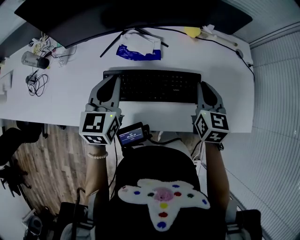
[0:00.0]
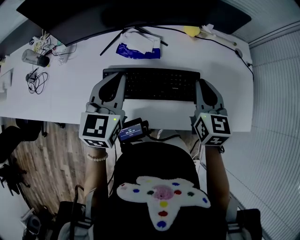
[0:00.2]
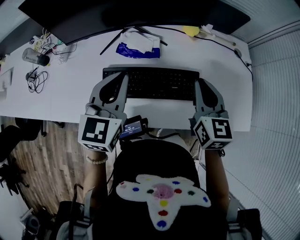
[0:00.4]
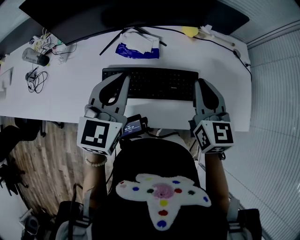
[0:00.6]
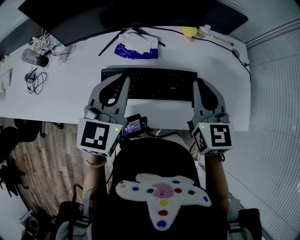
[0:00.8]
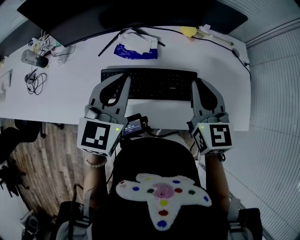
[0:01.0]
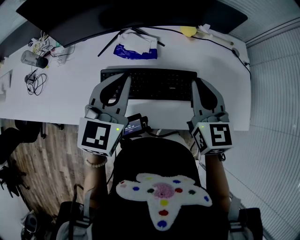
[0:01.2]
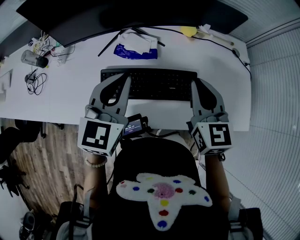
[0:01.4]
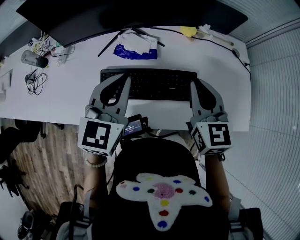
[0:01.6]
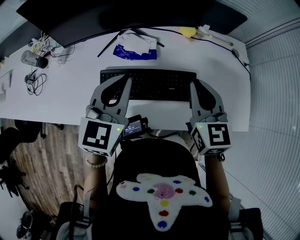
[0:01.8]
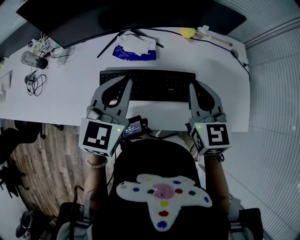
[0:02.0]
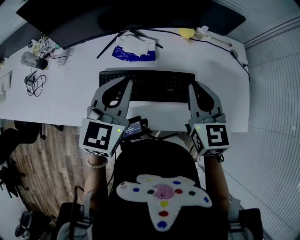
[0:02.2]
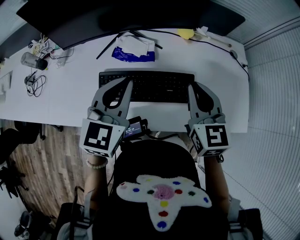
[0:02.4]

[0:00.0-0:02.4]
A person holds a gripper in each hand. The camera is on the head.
0:00.0 to 0:01.2: The right gripper heads upward, covering some 10 cm, while the left gripper is displaced upward and to the right by some 10 cm.
0:01.2 to 0:02.4: Both grippers stay about where they are.

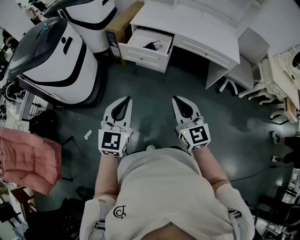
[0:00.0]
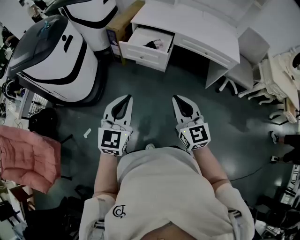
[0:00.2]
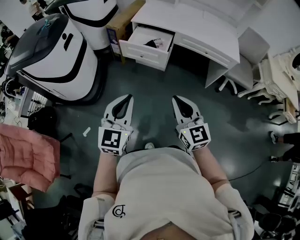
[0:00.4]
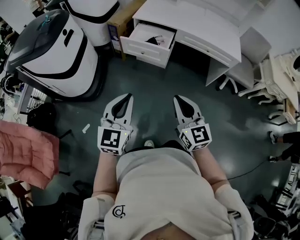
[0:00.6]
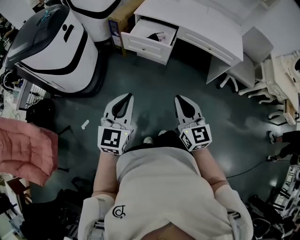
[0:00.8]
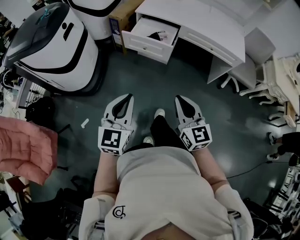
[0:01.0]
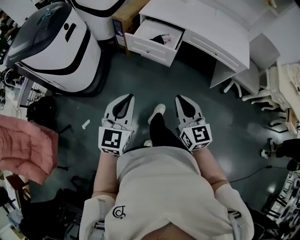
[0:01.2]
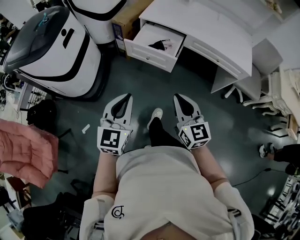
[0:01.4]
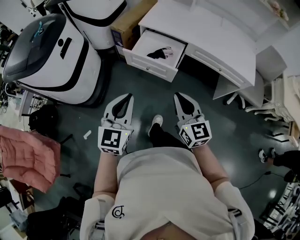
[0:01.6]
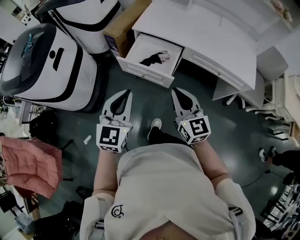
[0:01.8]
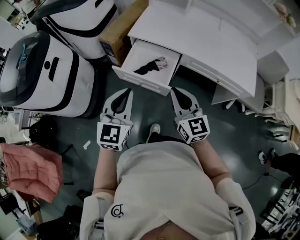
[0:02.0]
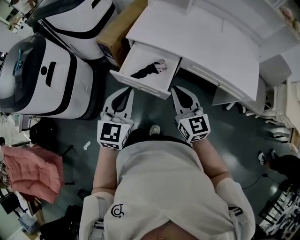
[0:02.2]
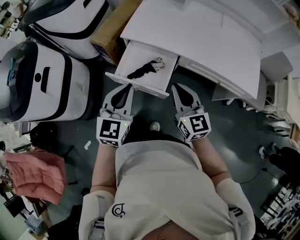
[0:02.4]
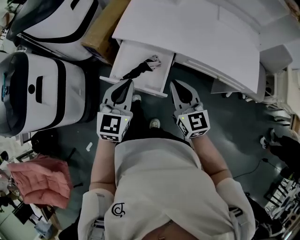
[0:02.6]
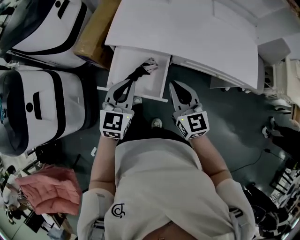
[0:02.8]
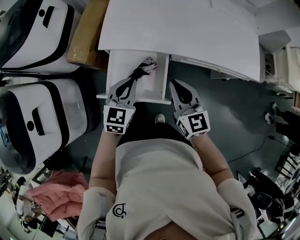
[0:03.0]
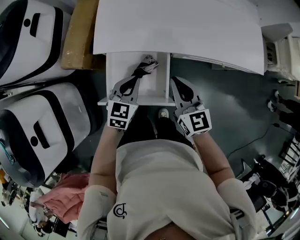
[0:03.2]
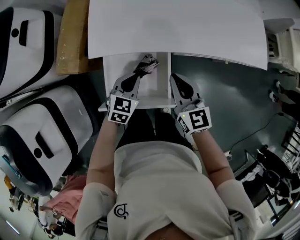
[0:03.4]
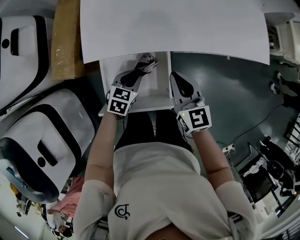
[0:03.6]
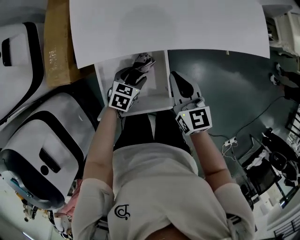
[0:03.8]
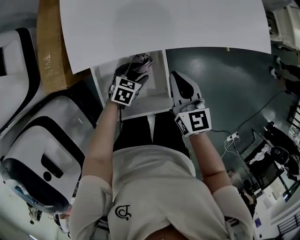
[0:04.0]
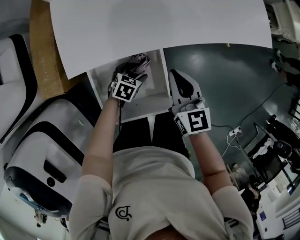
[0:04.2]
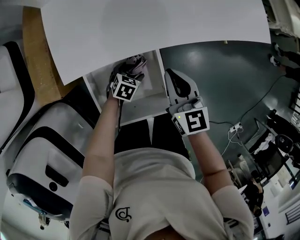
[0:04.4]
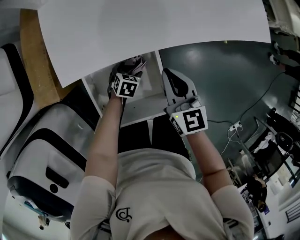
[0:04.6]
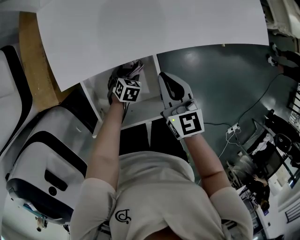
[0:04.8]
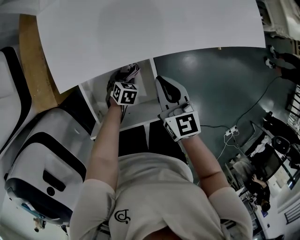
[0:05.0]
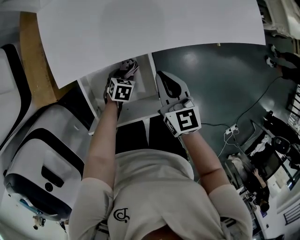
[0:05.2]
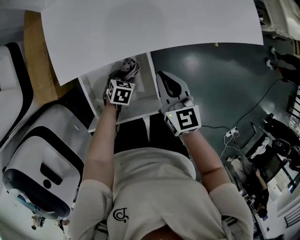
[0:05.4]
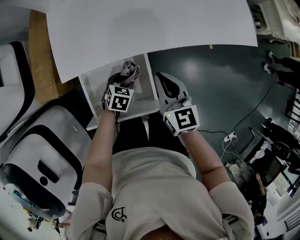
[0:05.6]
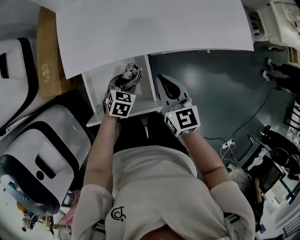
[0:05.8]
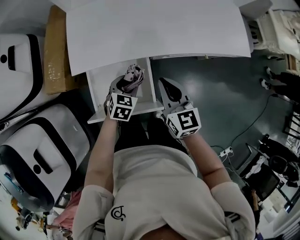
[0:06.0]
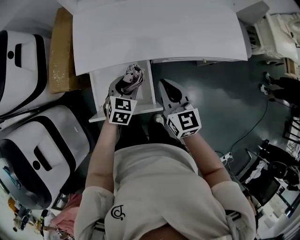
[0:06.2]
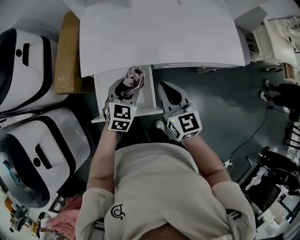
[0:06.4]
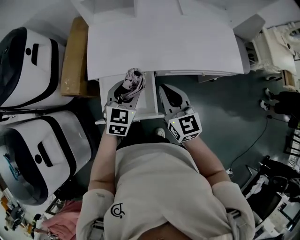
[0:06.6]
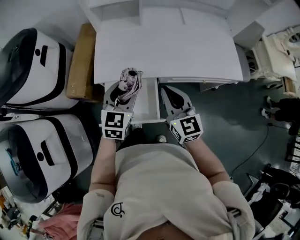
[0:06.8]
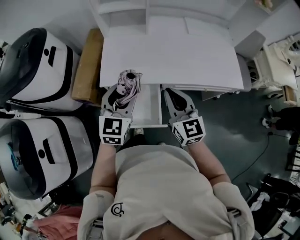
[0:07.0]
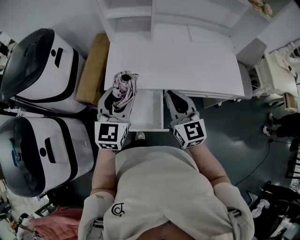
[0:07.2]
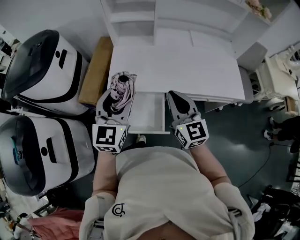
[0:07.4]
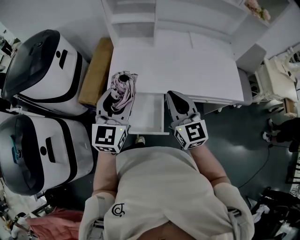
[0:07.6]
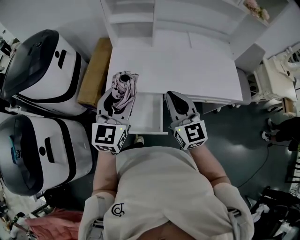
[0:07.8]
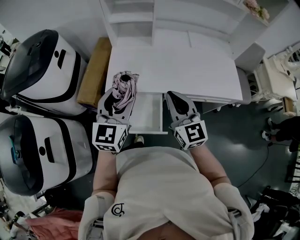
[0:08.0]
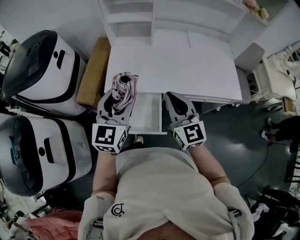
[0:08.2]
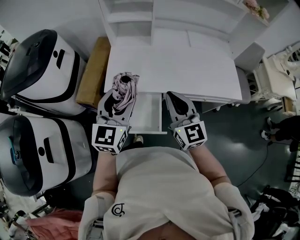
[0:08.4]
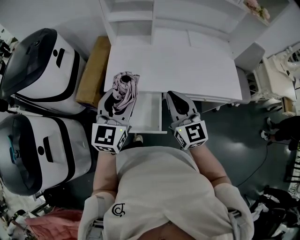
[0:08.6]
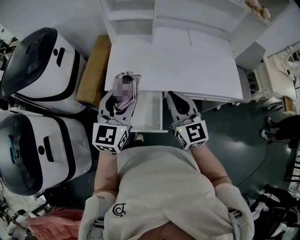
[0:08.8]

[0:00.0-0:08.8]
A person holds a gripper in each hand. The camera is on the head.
0:00.0 to 0:01.4: The two grippers go roughly 10 cm forward.
0:01.4 to 0:03.0: The pair of grippers is taken forward, some 50 cm. The left gripper swivels some 30 degrees.
0:03.0 to 0:04.4: The right gripper moves downward, approximately 10 cm, and changes its angle by some 30 degrees, while the left gripper shifts approximately 30 cm downward, angles its fingers downward, by approximately 30 degrees, and opens up.
0:04.4 to 0:05.8: The left gripper travels upward by roughly 10 cm, and closes up; the right gripper moves some 5 cm.
0:05.8 to 0:07.4: The left gripper heads upward, covering some 40 cm, and points its fingers some 50 degrees further upward, while the right gripper travels upward by some 20 cm, and changes its angle by roughly 20 degrees.
0:07.4 to 0:08.8: There are only small adjustments of the grippers.

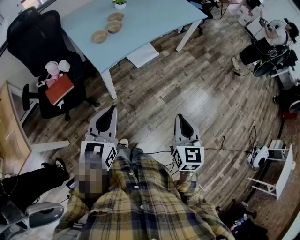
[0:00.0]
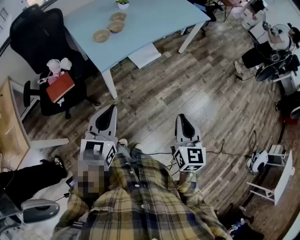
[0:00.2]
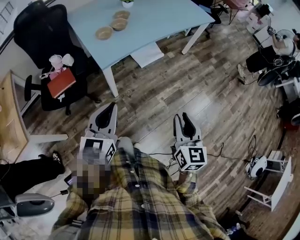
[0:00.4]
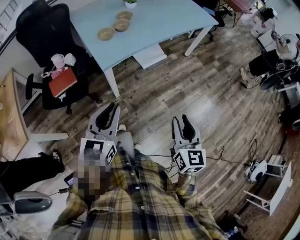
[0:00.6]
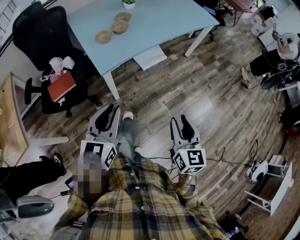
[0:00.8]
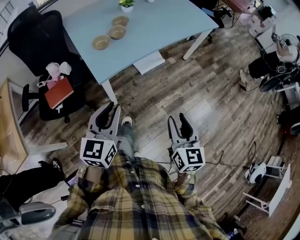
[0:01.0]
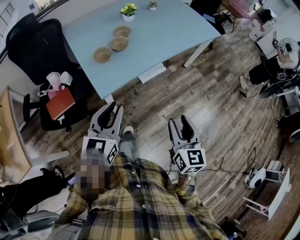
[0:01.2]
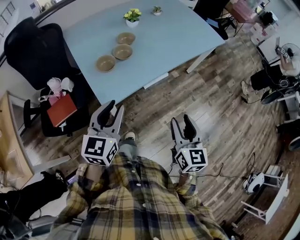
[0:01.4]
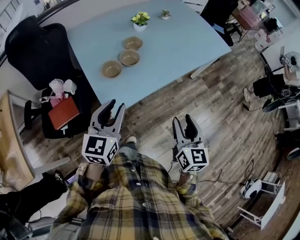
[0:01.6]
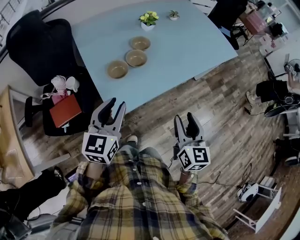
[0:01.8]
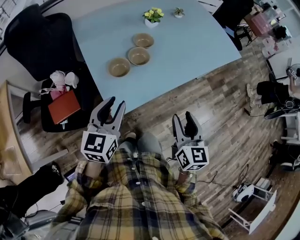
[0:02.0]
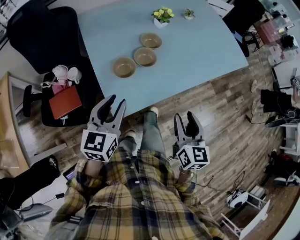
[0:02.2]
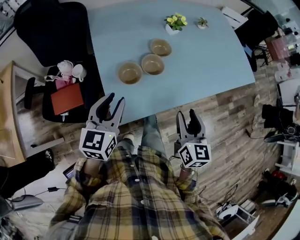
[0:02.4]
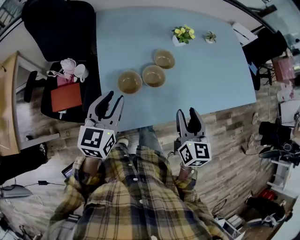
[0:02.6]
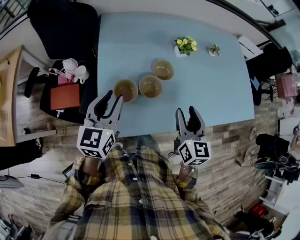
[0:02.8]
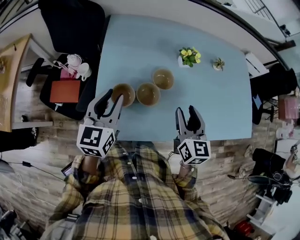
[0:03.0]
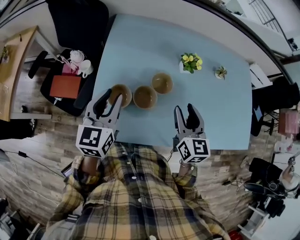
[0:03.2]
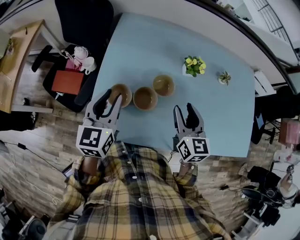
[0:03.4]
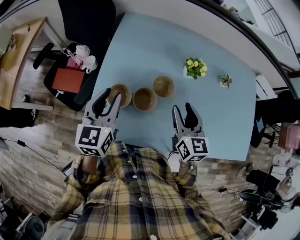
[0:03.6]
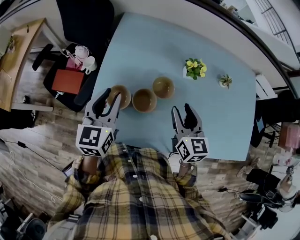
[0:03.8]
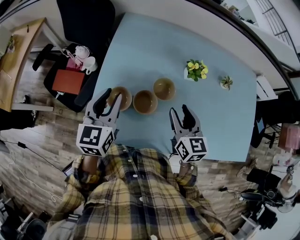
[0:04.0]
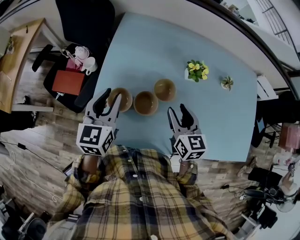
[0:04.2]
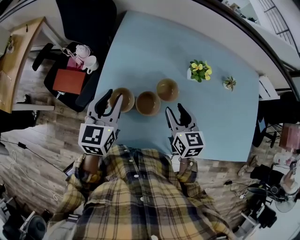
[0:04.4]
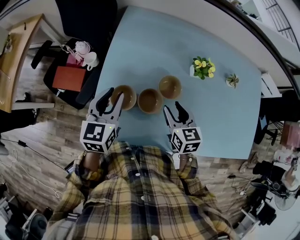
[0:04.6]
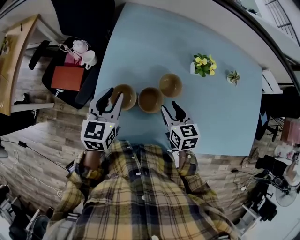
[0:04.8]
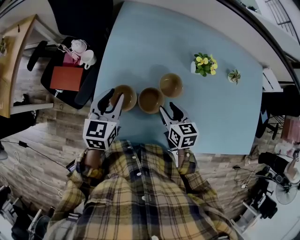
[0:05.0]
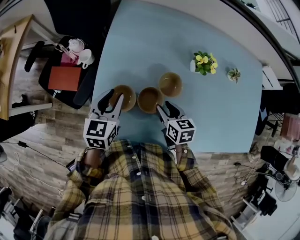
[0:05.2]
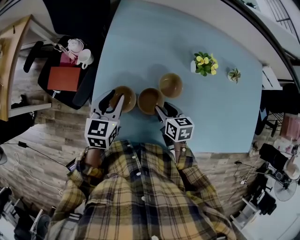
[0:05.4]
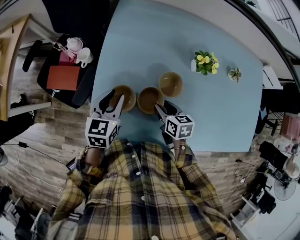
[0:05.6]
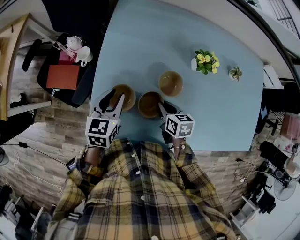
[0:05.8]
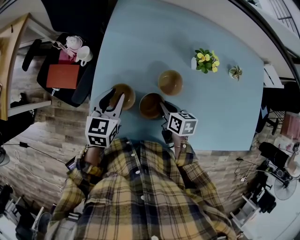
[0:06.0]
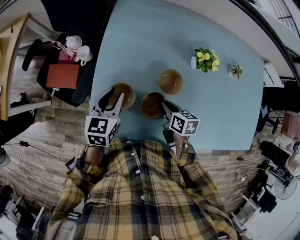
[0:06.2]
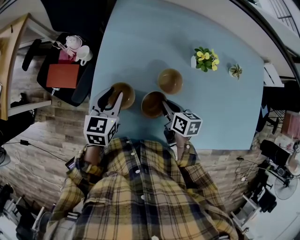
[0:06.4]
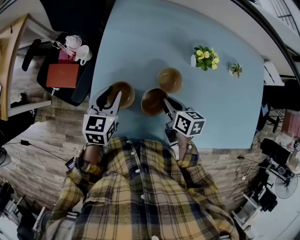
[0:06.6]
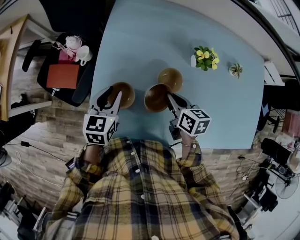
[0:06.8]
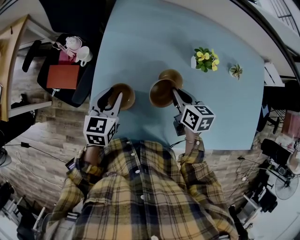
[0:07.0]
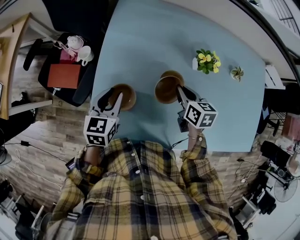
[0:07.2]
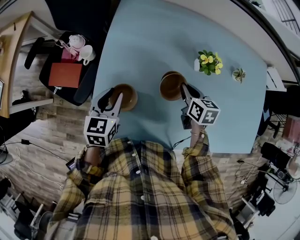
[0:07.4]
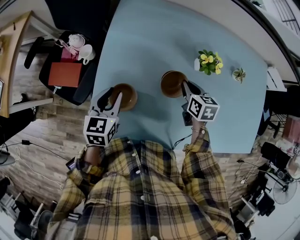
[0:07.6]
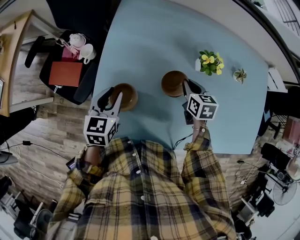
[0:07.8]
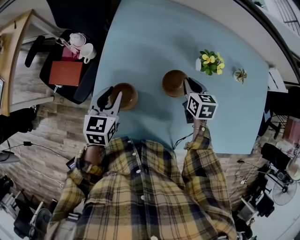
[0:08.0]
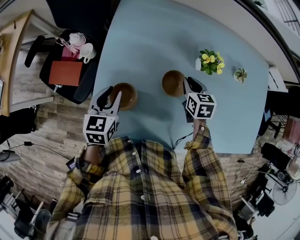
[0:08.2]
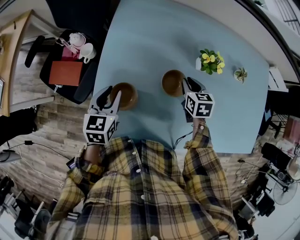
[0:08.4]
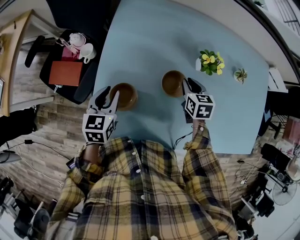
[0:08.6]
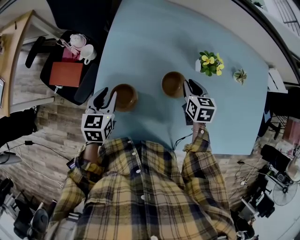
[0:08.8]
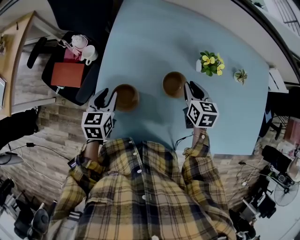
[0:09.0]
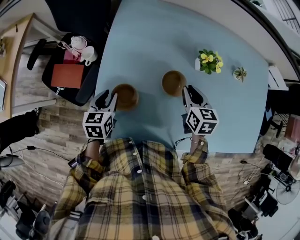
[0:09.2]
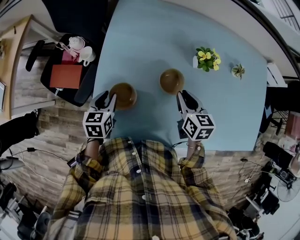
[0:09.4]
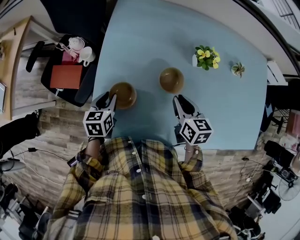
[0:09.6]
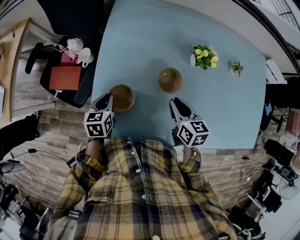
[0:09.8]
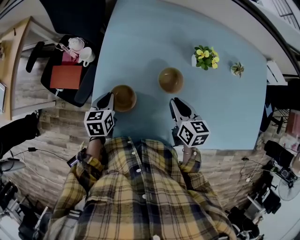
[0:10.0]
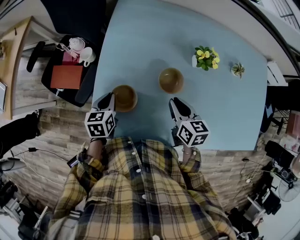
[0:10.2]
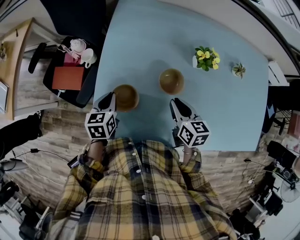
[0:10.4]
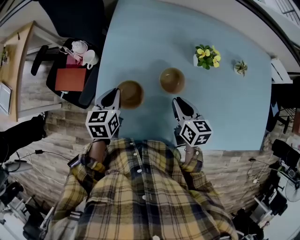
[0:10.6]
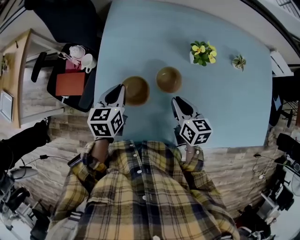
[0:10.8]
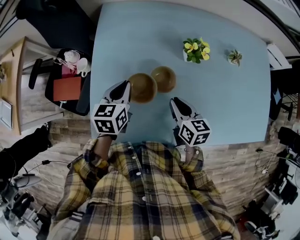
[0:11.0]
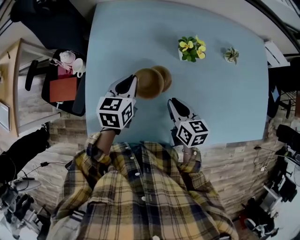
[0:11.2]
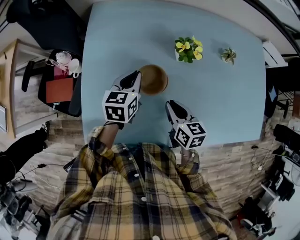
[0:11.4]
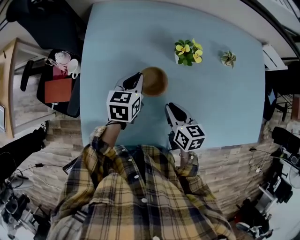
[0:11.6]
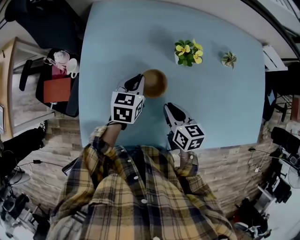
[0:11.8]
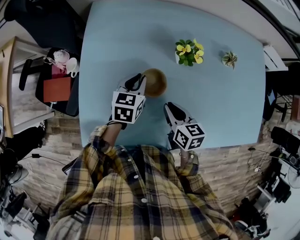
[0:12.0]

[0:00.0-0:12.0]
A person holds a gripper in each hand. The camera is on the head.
0:00.0 to 0:01.6: Both grippers move forward, approximately 30 cm. The right gripper opens up. The left gripper opens.
0:01.6 to 0:03.0: The left gripper shifts by some 20 cm, and swivels approximately 30 degrees. The right gripper shifts by roughly 35 cm, and turns by about 30 degrees.
0:03.0 to 0:04.4: The right gripper is displaced forward and downward by about 10 cm, and changes its angle by roughly 20 degrees.
0:04.4 to 0:06.0: Both grippers move downward, roughly 10 cm. The right gripper changes its angle by roughly 30 degrees, and closes.
0:06.0 to 0:07.6: The right gripper moves forward, to the right and upward, approximately 15 cm.
0:07.6 to 0:09.0: The left gripper moves some 5 cm.
0:09.0 to 0:10.4: The left gripper closes its fingers; the right gripper travels backward by about 10 cm.
0:10.4 to 0:12.0: The left gripper heads to the right and forward, covering some 20 cm. Meanwhile the right gripper moves to the right, roughly 5 cm.
